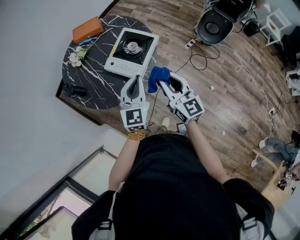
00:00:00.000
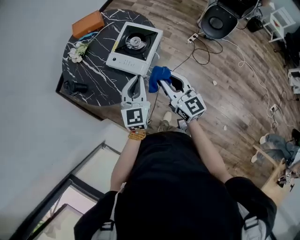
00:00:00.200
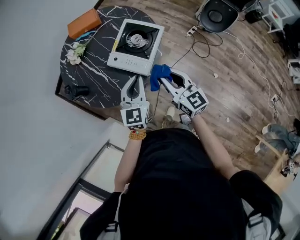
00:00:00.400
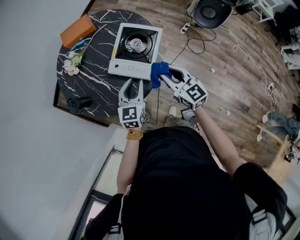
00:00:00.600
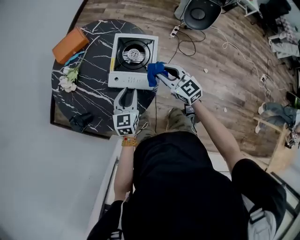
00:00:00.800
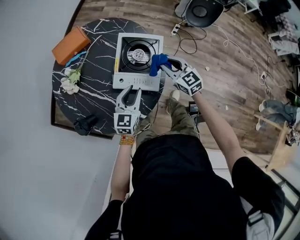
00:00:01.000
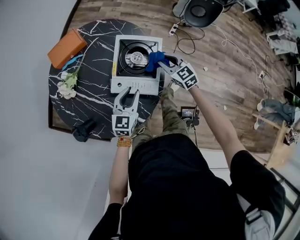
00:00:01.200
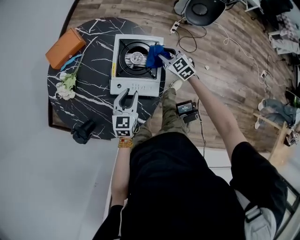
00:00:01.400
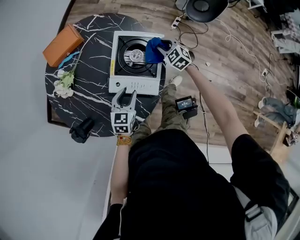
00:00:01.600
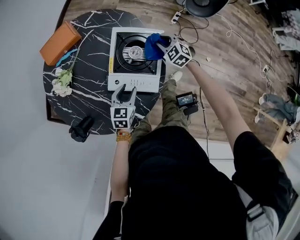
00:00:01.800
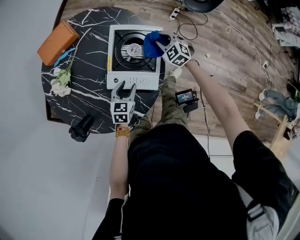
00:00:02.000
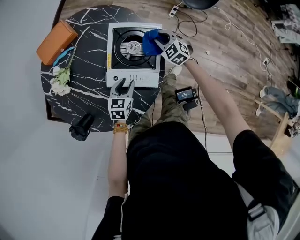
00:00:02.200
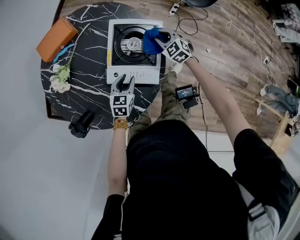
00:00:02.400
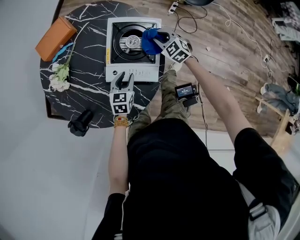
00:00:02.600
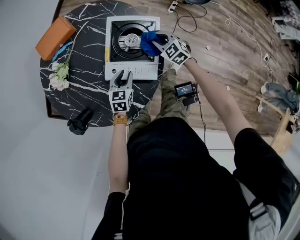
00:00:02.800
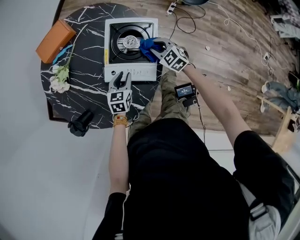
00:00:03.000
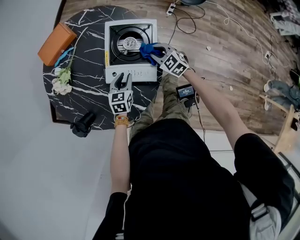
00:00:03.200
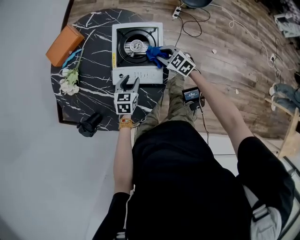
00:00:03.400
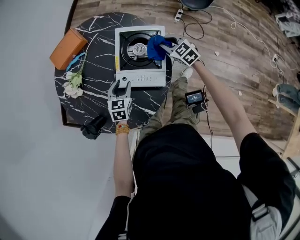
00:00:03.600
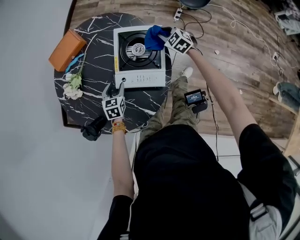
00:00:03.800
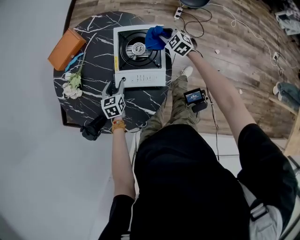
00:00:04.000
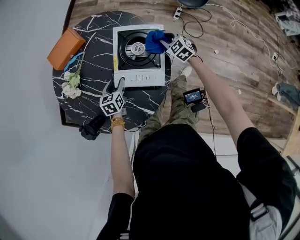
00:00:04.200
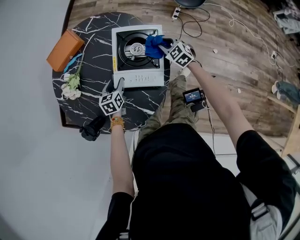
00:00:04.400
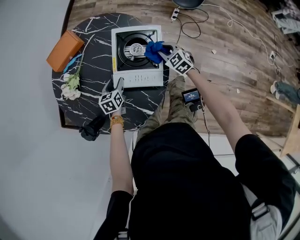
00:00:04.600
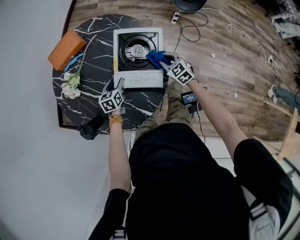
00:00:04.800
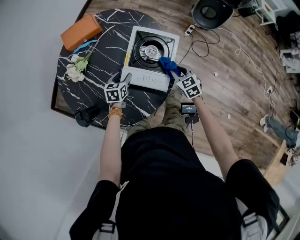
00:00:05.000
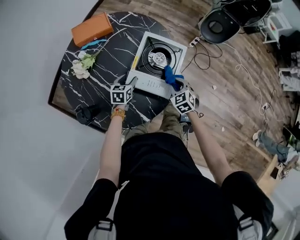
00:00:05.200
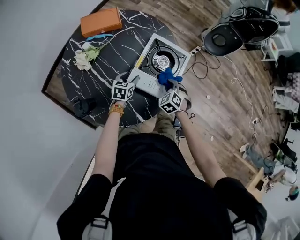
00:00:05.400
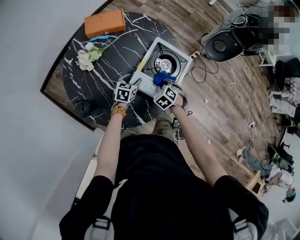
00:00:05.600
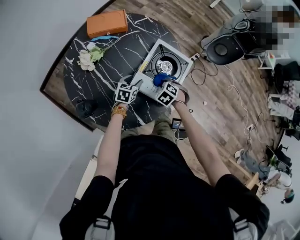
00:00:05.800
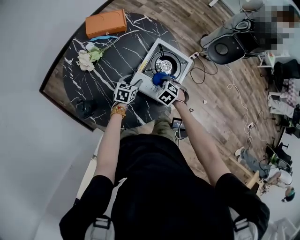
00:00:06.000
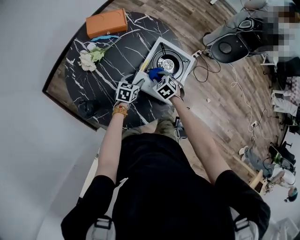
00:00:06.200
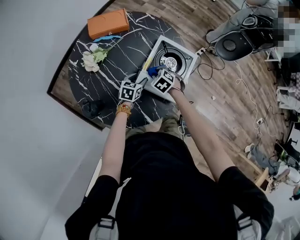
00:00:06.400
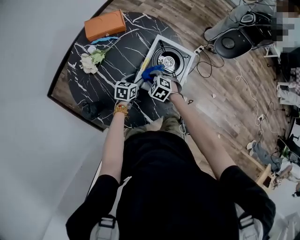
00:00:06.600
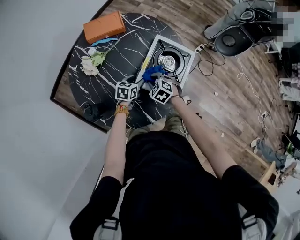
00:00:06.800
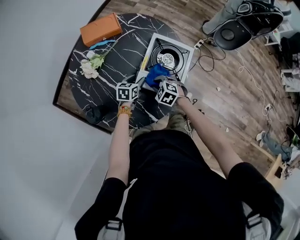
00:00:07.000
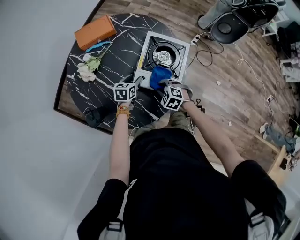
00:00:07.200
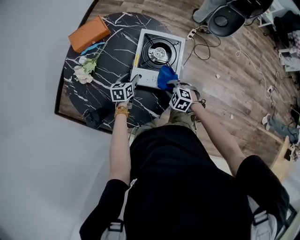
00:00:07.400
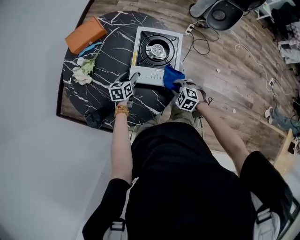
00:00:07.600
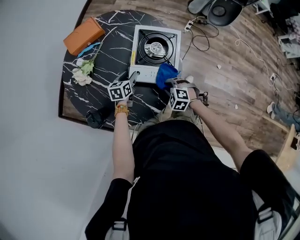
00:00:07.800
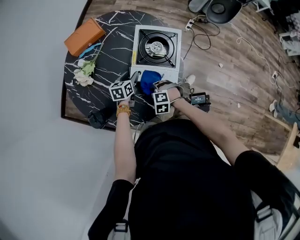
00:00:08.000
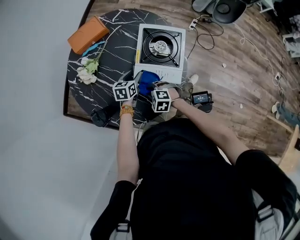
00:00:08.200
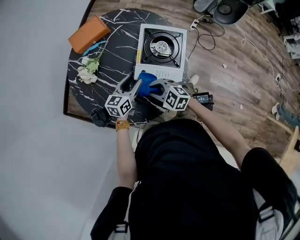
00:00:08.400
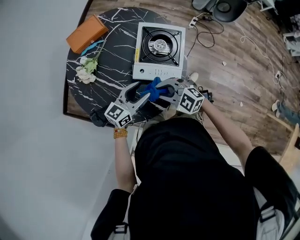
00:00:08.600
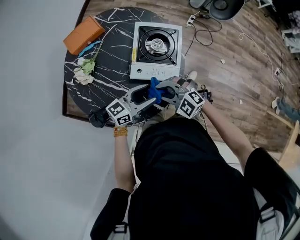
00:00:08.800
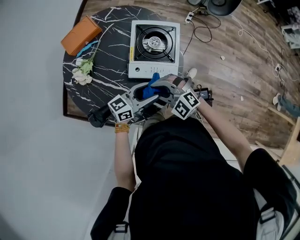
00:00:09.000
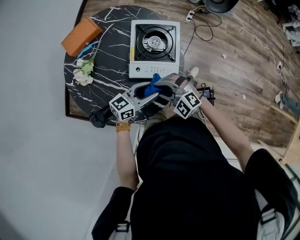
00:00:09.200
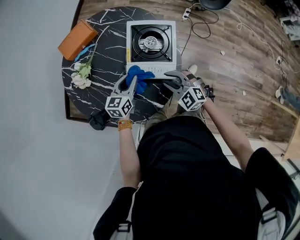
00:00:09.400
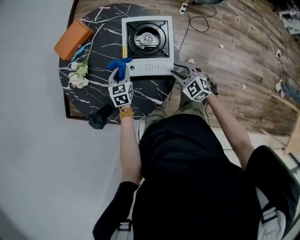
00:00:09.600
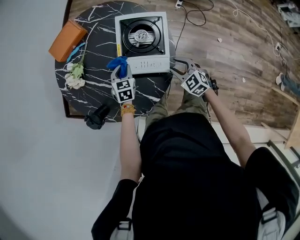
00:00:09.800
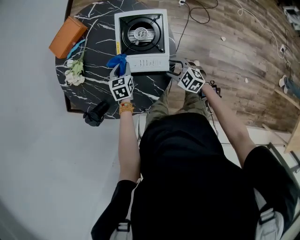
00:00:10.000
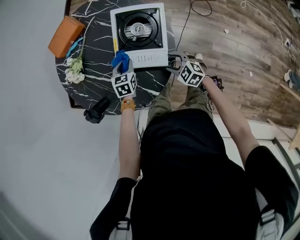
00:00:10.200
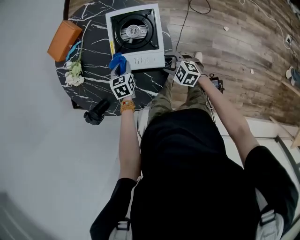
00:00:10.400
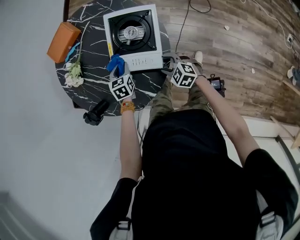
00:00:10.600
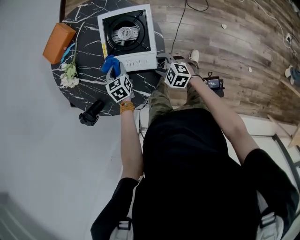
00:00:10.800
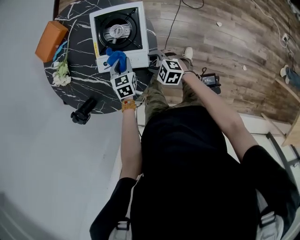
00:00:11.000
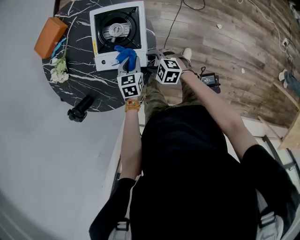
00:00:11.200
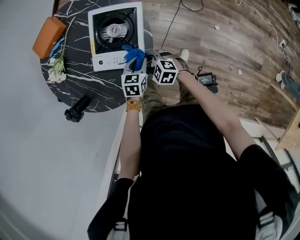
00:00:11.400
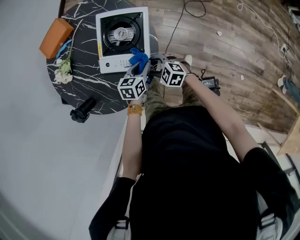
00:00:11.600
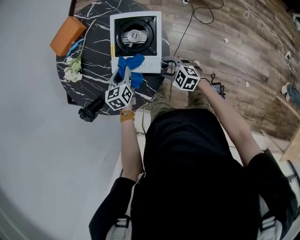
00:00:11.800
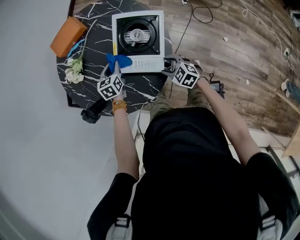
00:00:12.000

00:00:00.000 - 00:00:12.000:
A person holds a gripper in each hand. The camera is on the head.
00:00:00.000 - 00:00:01.600: The right gripper moves forward and downward, about 40 cm, and angles its fingers downward, by some 50 degrees. The left gripper heads downward, forward and to the left, covering approximately 30 cm, turns by about 40 degrees, and opens its fingers.
00:00:01.600 - 00:00:03.000: The left gripper is displaced downward by about 5 cm; the right gripper moves backward, approximately 10 cm.
00:00:03.000 - 00:00:04.400: The left gripper shifts some 10 cm to the left, while the right gripper reaches roughly 10 cm forward, then returns.
00:00:04.400 - 00:00:06.000: The right gripper is displaced to the left and backward by about 15 cm, and rotates some 40 degrees.
00:00:06.000 - 00:00:07.600: The right gripper goes approximately 15 cm backward and to the right.
00:00:07.600 - 00:00:09.000: Both grippers move upward, approximately 15 cm. The right gripper tilts its fingers approximately 40 degrees upward. Meanwhile the left gripper tilts its fingers approximately 40 degrees upward.
00:00:09.000 - 00:00:10.400: Both grippers travel together downward, some 15 cm. The left gripper tips its fingers downward by some 50 degrees, and closes its fingers, while the right gripper rotates about 40 degrees, and opens.
00:00:10.400 - 00:00:12.000: The left gripper moves about 15 cm to the right and comes back.

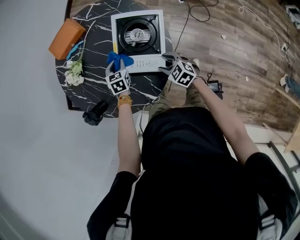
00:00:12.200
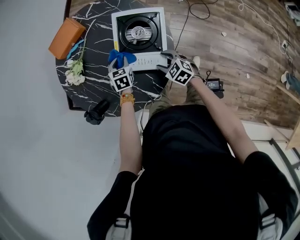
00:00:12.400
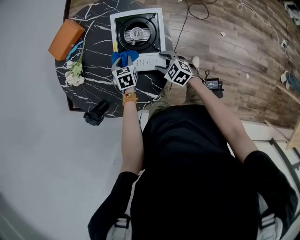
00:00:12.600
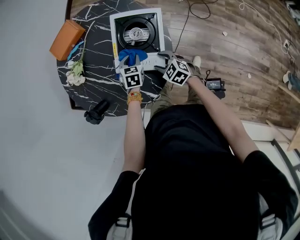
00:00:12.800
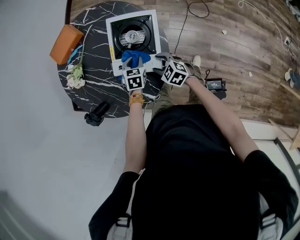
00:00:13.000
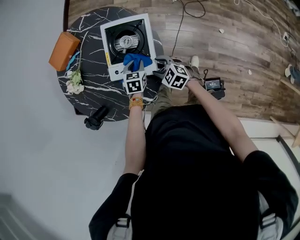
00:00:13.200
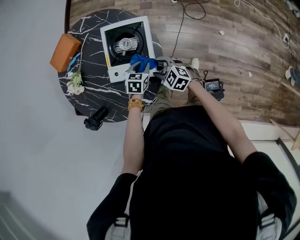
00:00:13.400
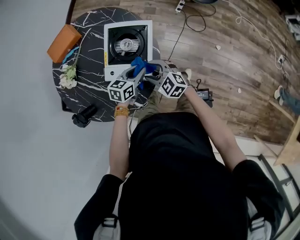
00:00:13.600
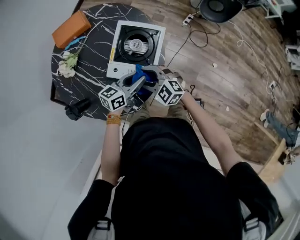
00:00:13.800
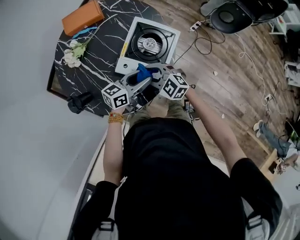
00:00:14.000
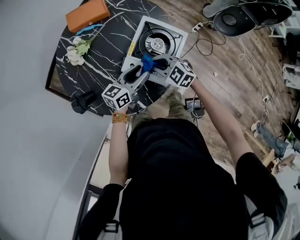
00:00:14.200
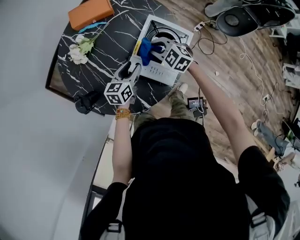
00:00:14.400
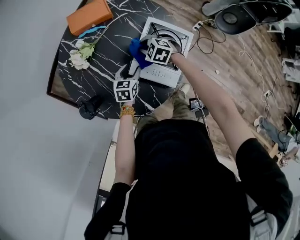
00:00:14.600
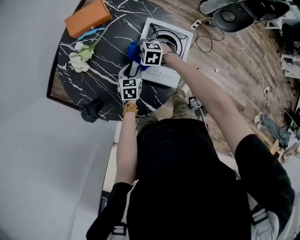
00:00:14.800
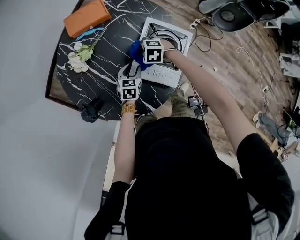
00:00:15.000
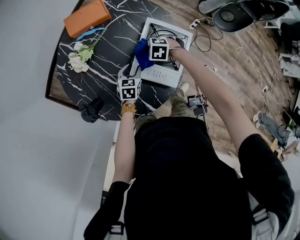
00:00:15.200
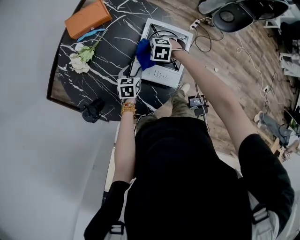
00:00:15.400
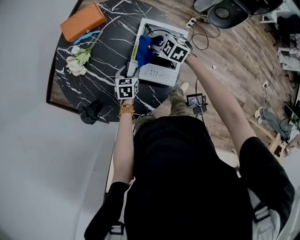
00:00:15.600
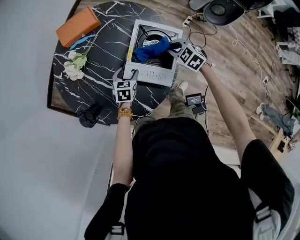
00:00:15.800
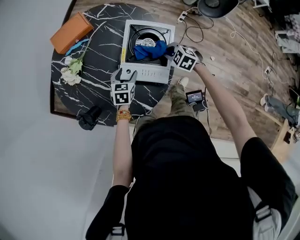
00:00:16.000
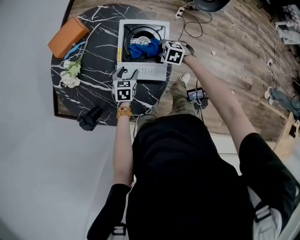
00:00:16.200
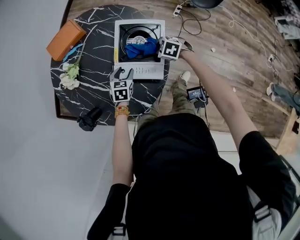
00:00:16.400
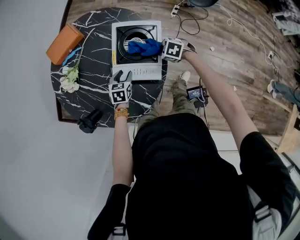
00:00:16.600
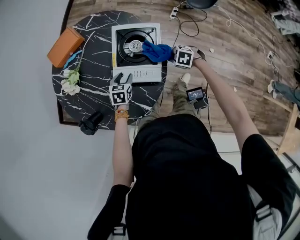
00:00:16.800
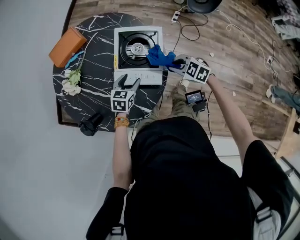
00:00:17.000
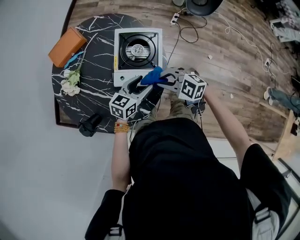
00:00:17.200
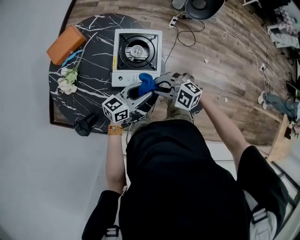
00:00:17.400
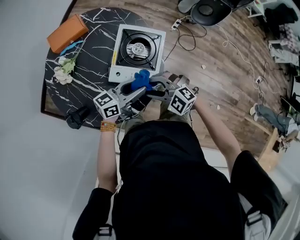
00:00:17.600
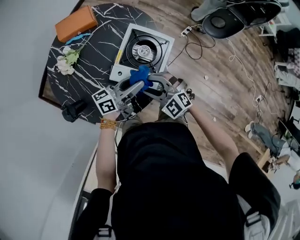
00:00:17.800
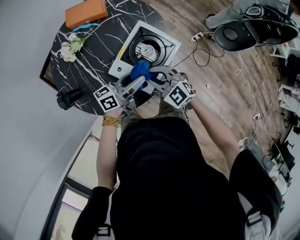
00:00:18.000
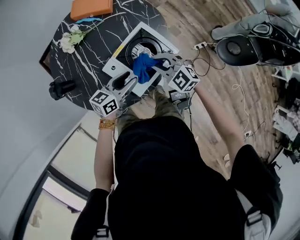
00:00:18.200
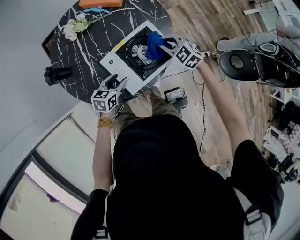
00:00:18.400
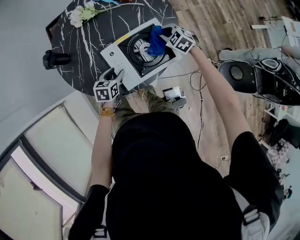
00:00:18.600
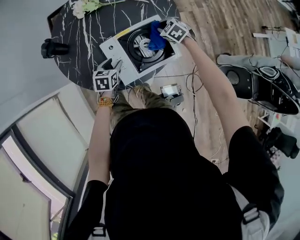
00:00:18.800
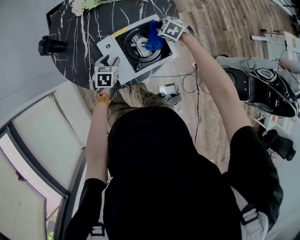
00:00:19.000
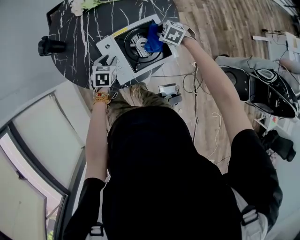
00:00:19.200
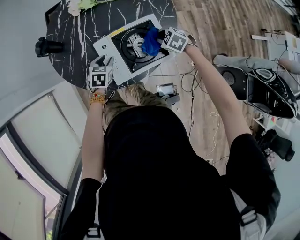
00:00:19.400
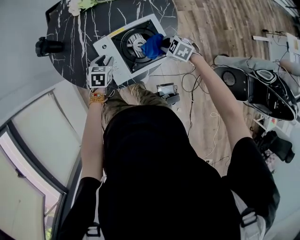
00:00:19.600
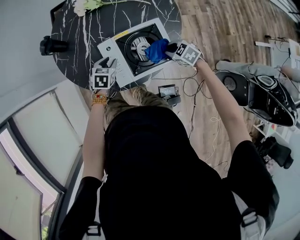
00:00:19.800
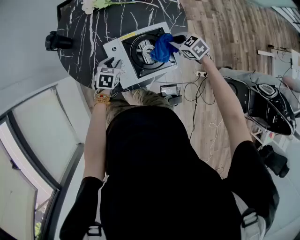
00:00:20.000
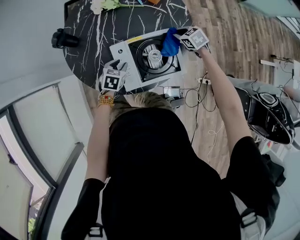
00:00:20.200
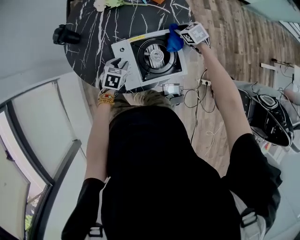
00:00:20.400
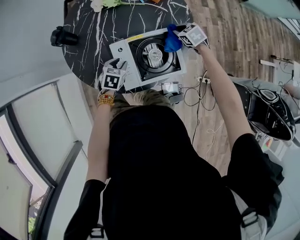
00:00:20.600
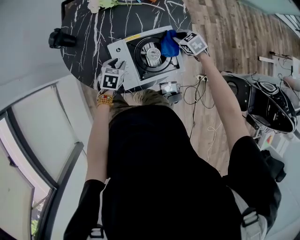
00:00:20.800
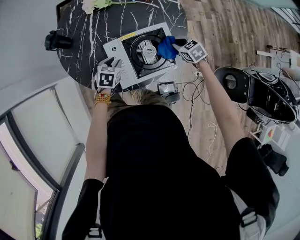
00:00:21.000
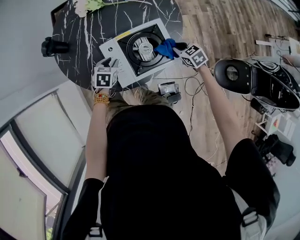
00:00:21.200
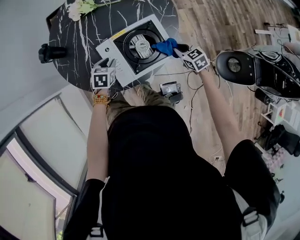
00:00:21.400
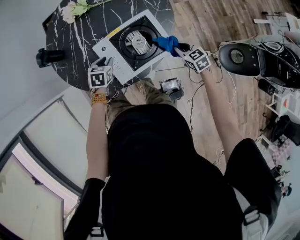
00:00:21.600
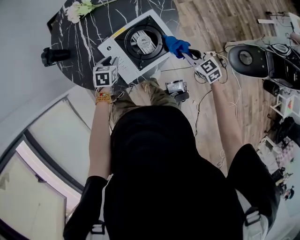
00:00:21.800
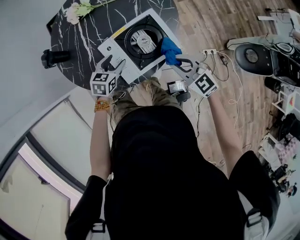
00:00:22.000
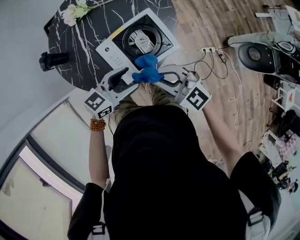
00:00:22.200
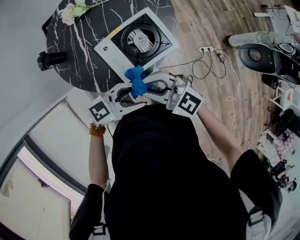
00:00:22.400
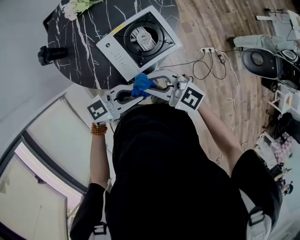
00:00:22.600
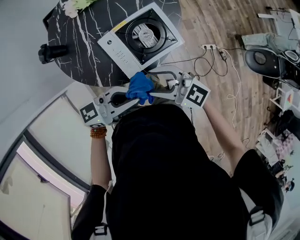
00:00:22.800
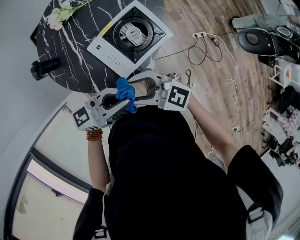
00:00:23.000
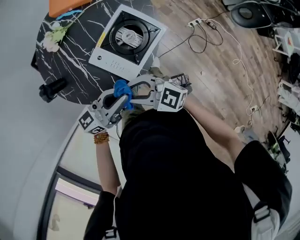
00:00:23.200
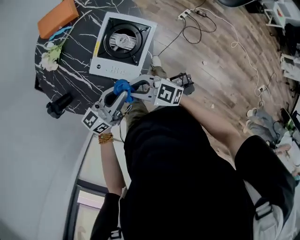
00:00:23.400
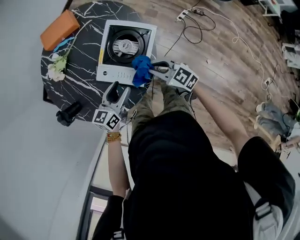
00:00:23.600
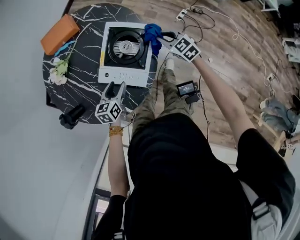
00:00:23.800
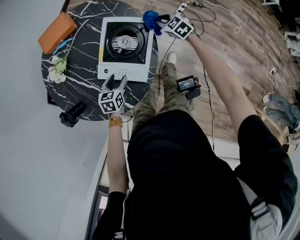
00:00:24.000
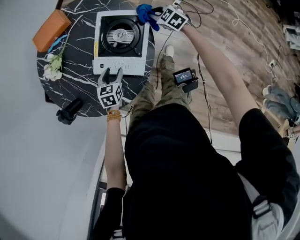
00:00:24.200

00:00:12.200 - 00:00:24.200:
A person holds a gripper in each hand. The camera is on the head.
00:00:12.200 - 00:00:13.800: The left gripper heads to the right, upward and backward, covering roughly 20 cm, and tilts its fingers about 40 degrees upward. Meanwhile the right gripper goes approximately 10 cm upward, and turns by some 30 degrees.
00:00:13.800 - 00:00:15.200: The left gripper ends up about 25 cm from where it was, and swivels about 40 degrees. The right gripper moves some 20 cm, tilts its fingers roughly 40 degrees downward, and closes up.
00:00:15.200 - 00:00:16.600: The left gripper changes place by some 5 cm, while the right gripper goes about 20 cm to the right and backward, and swivels approximately 30 degrees.
00:00:16.600 - 00:00:18.200: The grippers both shift upward by some 15 cm. The right gripper tilts its fingers approximately 30 degrees upward, and opens, then closes once more; the left gripper tips its fingers upward by about 30 degrees.
00:00:18.200 - 00:00:19.800: The grippers both shift downward by about 15 cm. The right gripper rotates approximately 40 degrees, while the left gripper tips its fingers downward by roughly 40 degrees.
00:00:19.800 - 00:00:21.200: The right gripper travels forward and back again, about 15 cm each way, and turns by some 20 degrees.
00:00:21.200 - 00:00:22.600: The right gripper moves roughly 35 cm, and points its fingers approximately 40 degrees further upward, while the left gripper goes about 20 cm upward, tips its fingers upward by approximately 50 degrees, and opens, then closes once more.
00:00:22.600 - 00:00:24.200: The left gripper goes roughly 20 cm downward, tips its fingers downward by some 40 degrees, and opens, while the right gripper shifts by some 30 cm, angles its fingers downward, by about 40 degrees, and opens, then closes again.
